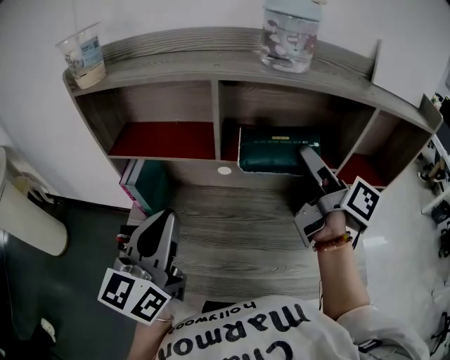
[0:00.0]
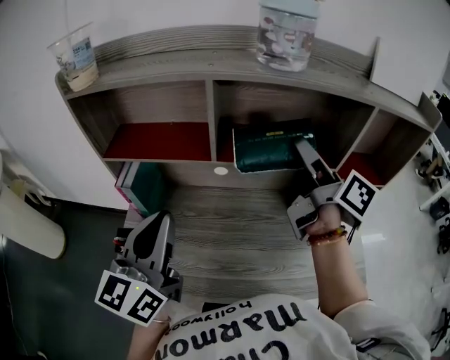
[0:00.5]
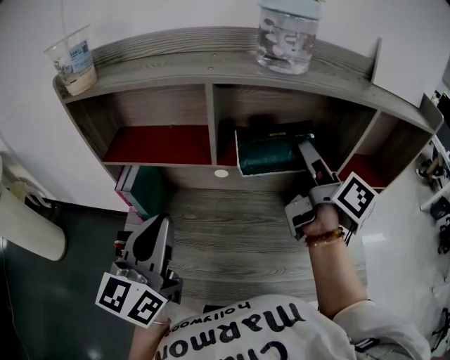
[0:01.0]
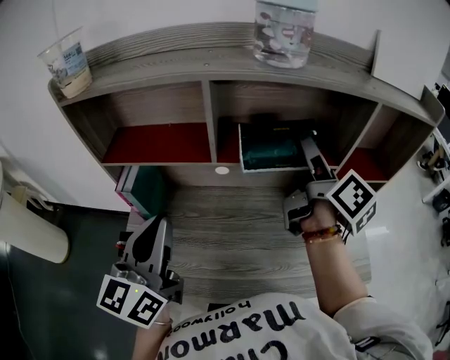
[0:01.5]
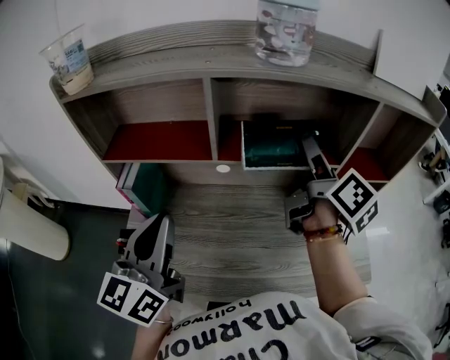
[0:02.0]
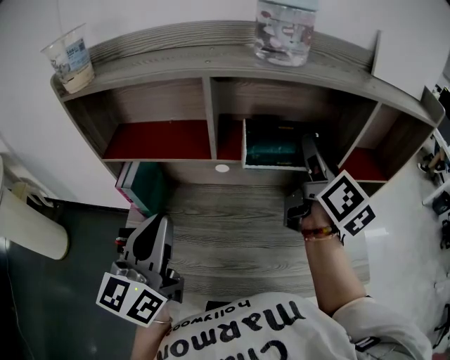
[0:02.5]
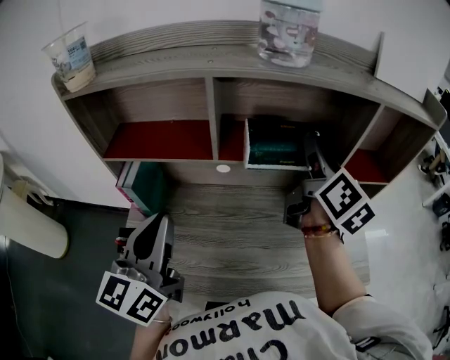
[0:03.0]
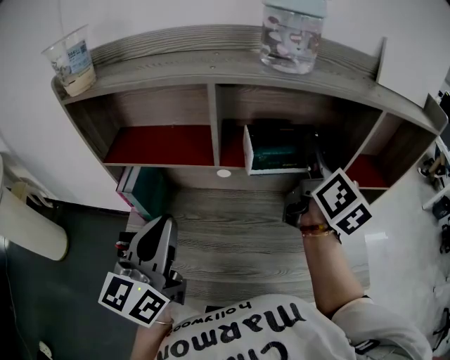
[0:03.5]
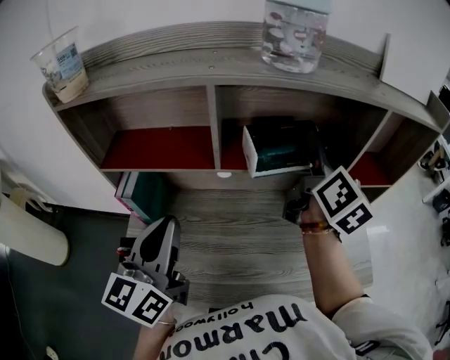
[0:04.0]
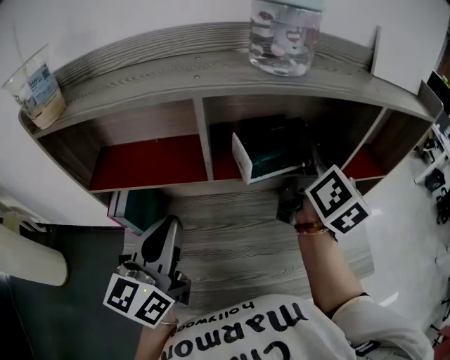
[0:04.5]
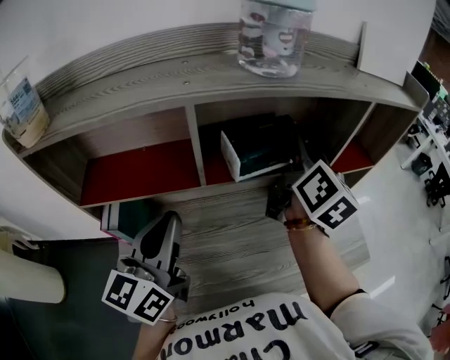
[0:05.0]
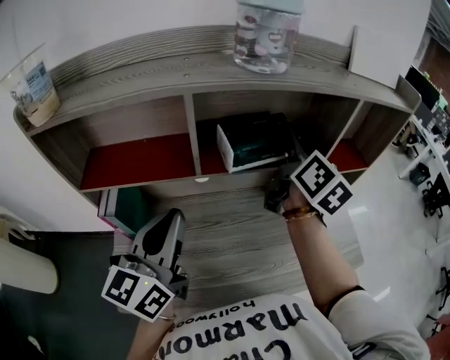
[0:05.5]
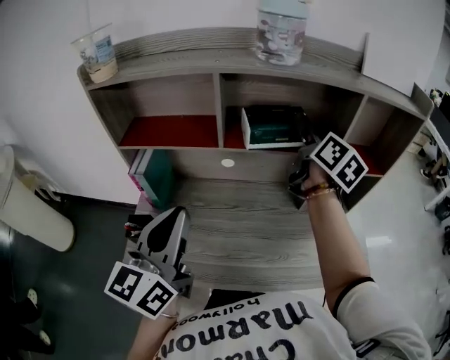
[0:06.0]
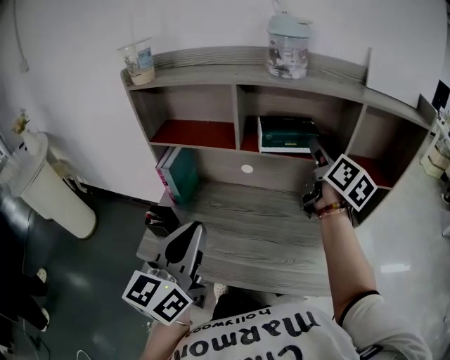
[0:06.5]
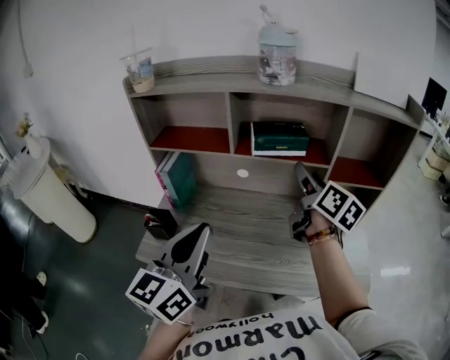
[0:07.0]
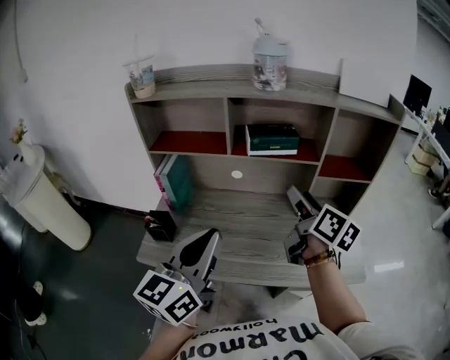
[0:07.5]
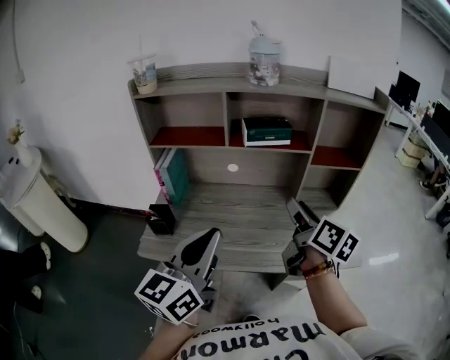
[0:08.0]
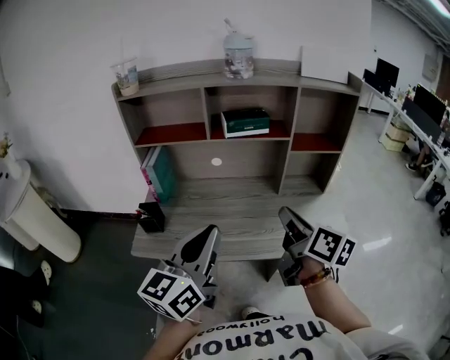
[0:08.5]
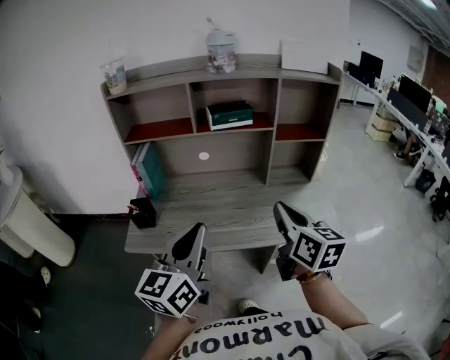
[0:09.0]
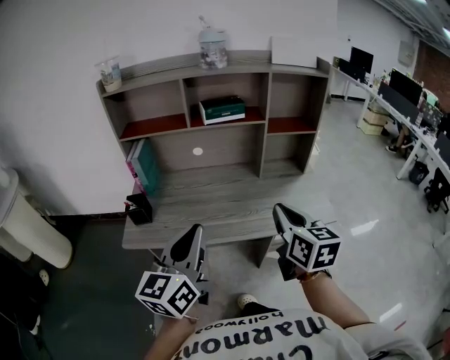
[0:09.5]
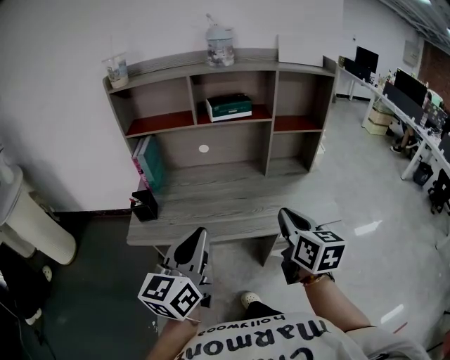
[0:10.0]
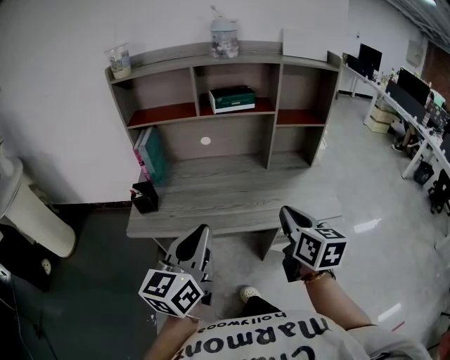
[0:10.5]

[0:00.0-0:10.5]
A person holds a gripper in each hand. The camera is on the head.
0:00.0 to 0:02.0: The right gripper changes its angle by approximately 30 degrees.
0:02.0 to 0:04.0: The right gripper changes its angle by some 20 degrees.
0:04.0 to 0:06.5: The left gripper goes some 15 cm backward and to the right.
0:06.5 to 0:08.5: The right gripper is displaced backward by some 30 cm, and closes its fingers. Meanwhile the left gripper heads backward and to the right, covering some 15 cm.
0:08.5 to 0:10.5: The grippers both shift backward and downward by roughly 10 cm. The right gripper swivels some 30 degrees.

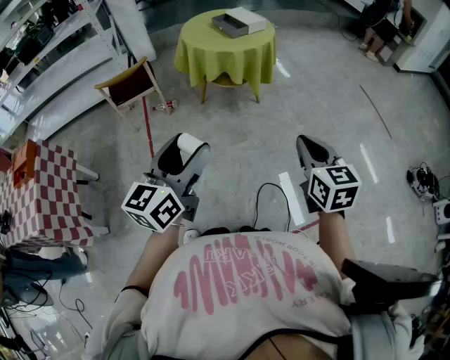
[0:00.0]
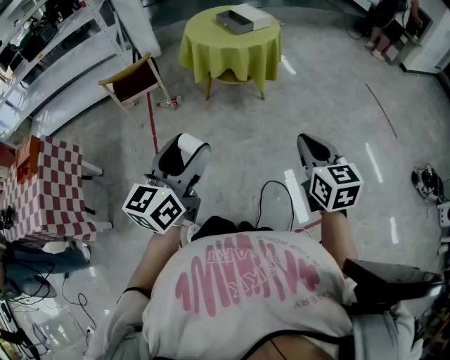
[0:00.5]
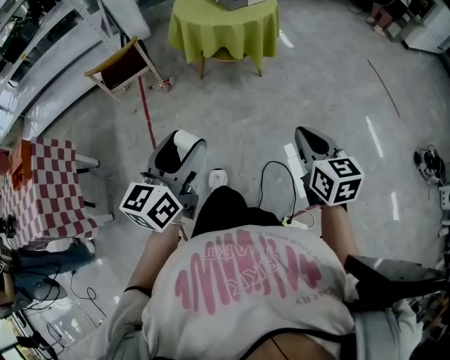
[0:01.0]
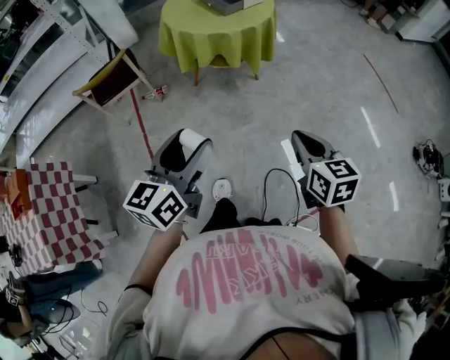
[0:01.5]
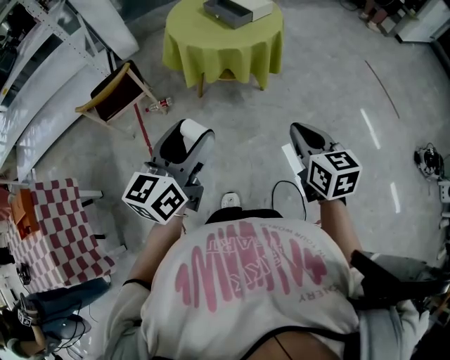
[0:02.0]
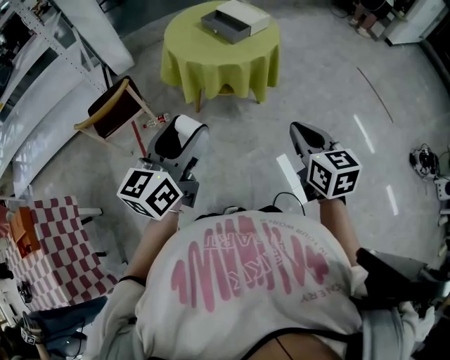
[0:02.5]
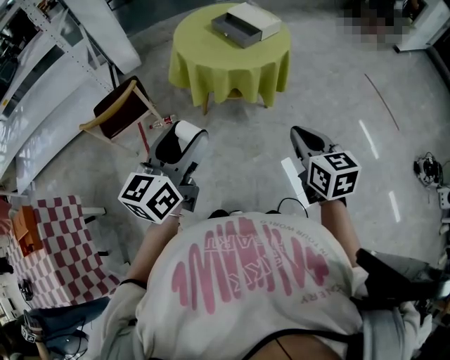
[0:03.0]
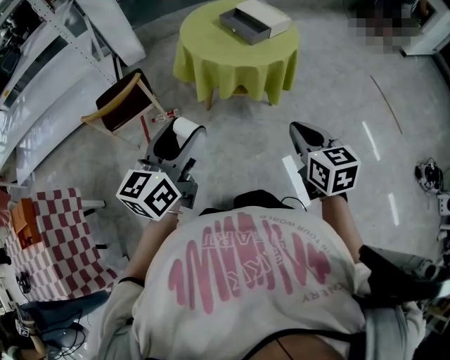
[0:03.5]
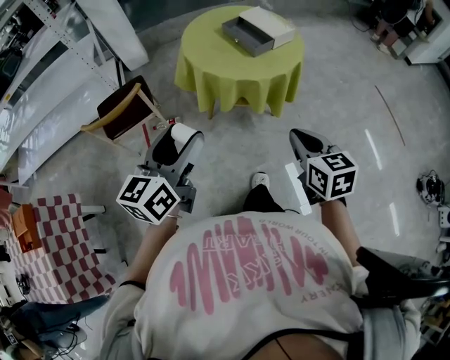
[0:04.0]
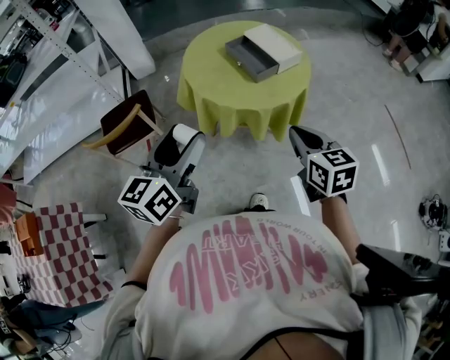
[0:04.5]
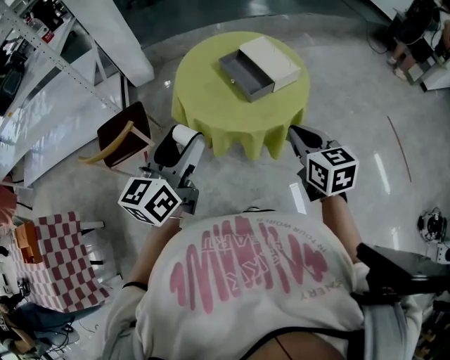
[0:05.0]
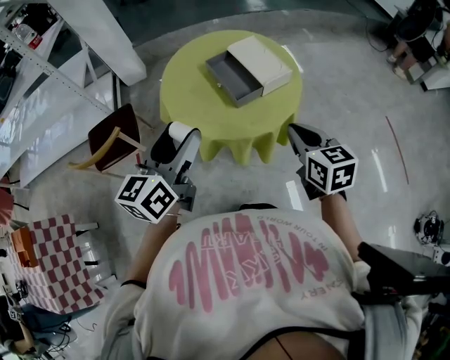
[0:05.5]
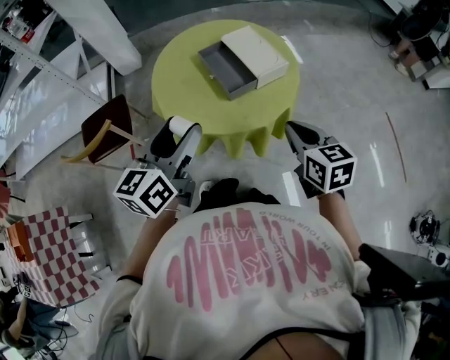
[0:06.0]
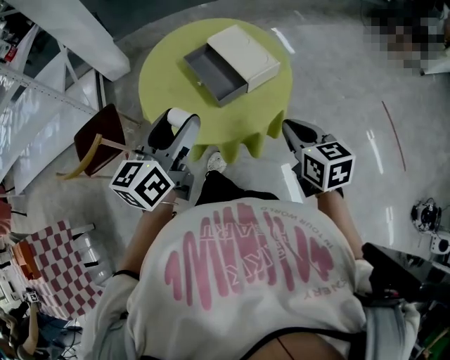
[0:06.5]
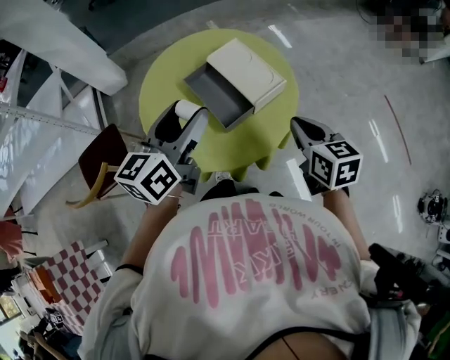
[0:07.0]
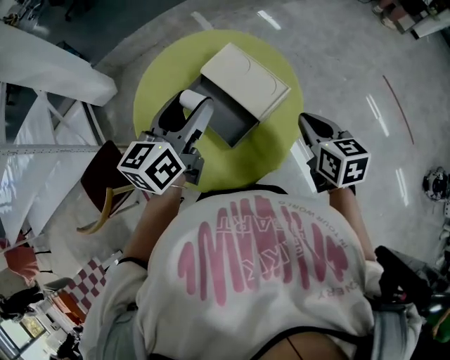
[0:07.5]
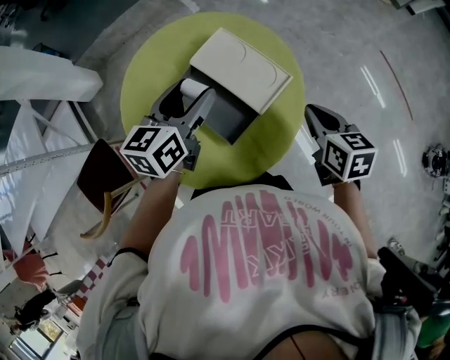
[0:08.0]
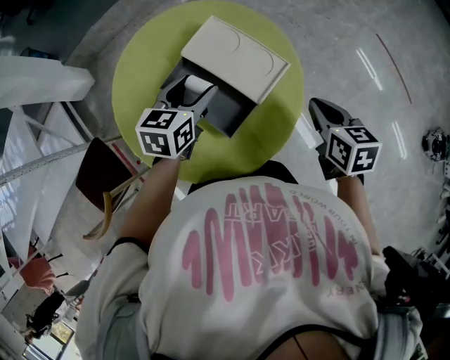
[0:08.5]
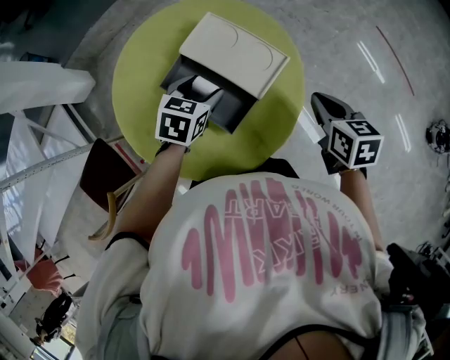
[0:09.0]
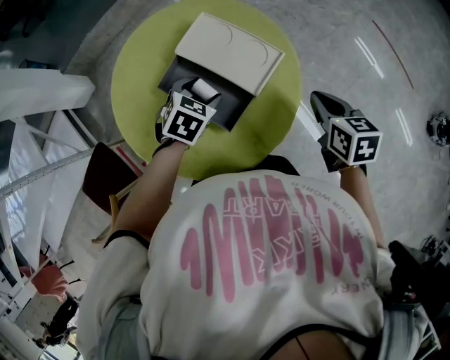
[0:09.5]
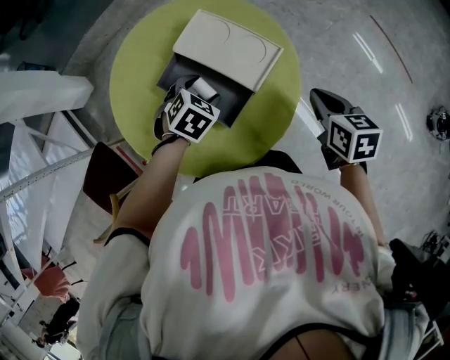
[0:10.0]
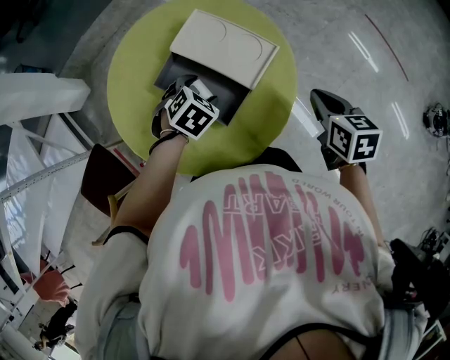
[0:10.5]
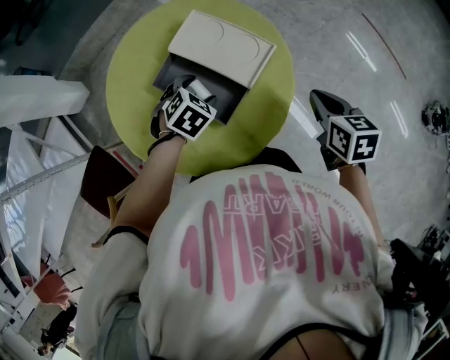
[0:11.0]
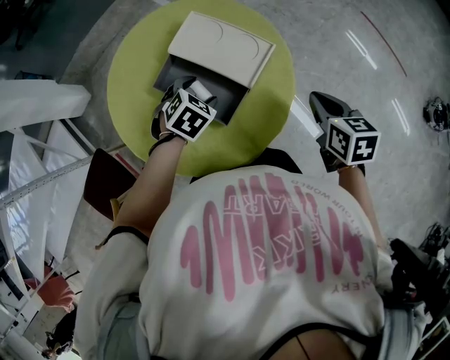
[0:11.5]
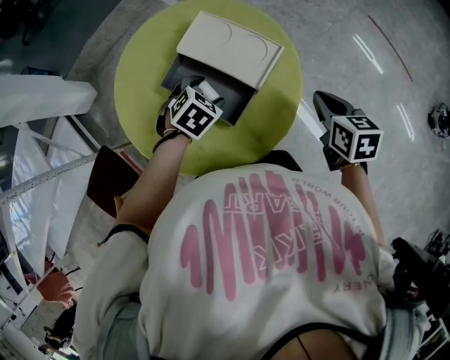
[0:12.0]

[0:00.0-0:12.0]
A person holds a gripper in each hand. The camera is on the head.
0:00.0 to 0:02.0: The right gripper heads forward and to the left, covering some 25 cm. The left gripper goes about 25 cm forward.
0:02.0 to 0:04.0: The left gripper travels forward and to the left by roughly 15 cm. The right gripper shifts roughly 15 cm forward.
0:04.0 to 0:06.0: Both grippers travel together forward and to the right, roughly 30 cm.
0:06.0 to 0:08.0: The right gripper heads forward, covering roughly 20 cm, and swivels roughly 30 degrees. The left gripper goes about 35 cm forward, and changes its angle by roughly 30 degrees.
0:08.0 to 0:10.0: The left gripper travels downward by about 15 cm, and tips its fingers downward by about 40 degrees. Meanwhile the right gripper moves approximately 5 cm.
0:10.0 to 0:12.0: The grippers move only a little.

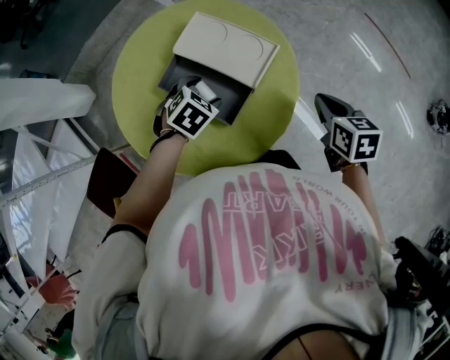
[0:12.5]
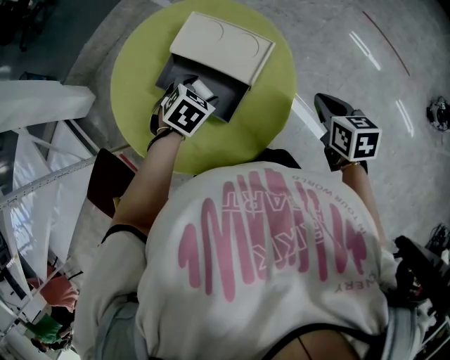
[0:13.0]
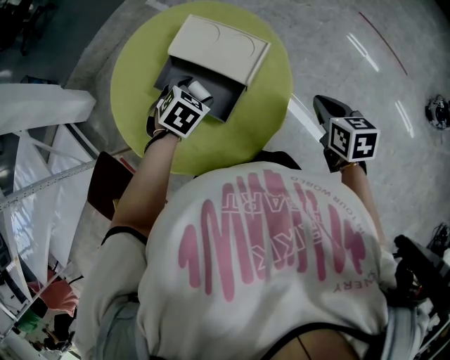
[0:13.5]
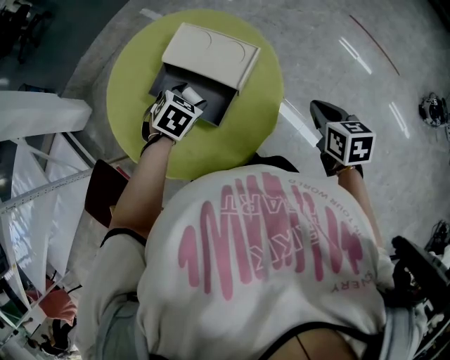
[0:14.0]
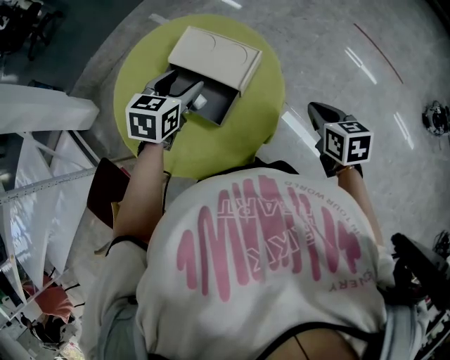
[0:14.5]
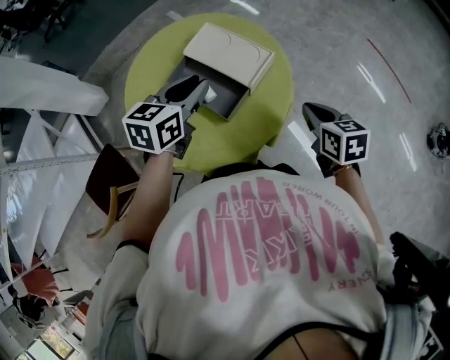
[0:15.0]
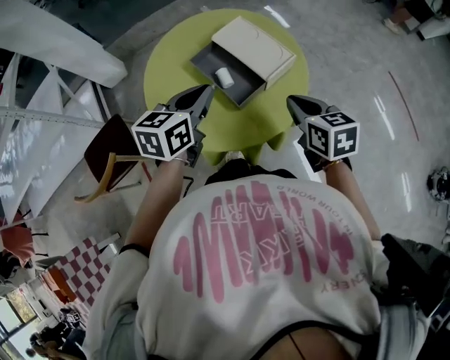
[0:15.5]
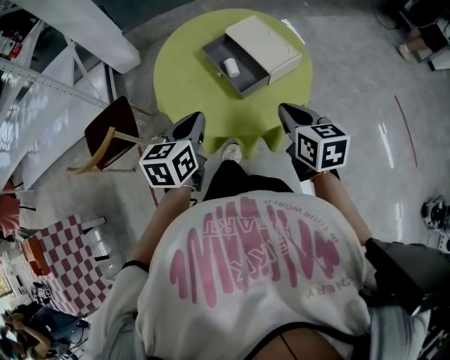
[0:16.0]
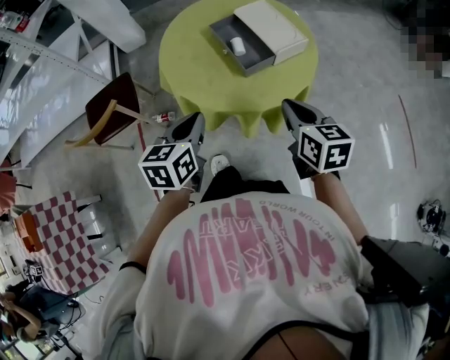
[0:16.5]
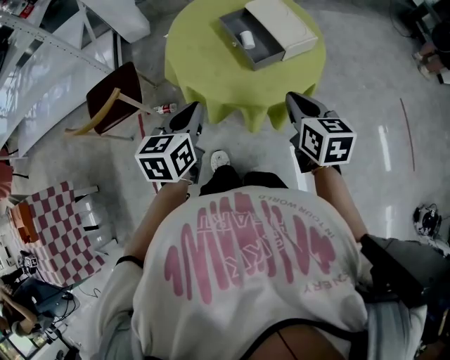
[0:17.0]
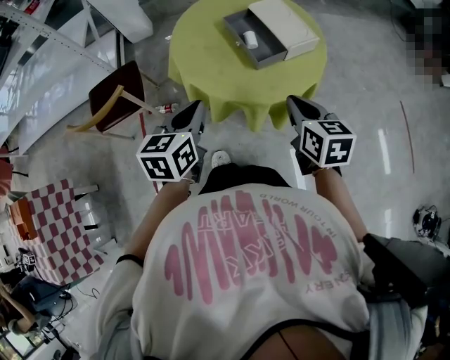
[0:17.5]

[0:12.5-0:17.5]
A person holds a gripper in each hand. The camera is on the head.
0:12.5 to 0:15.0: The right gripper moves approximately 5 cm. The left gripper shifts about 20 cm upward, tilts its fingers about 40 degrees upward, and closes.
0:15.0 to 0:17.5: The left gripper shifts by some 30 cm, and changes its angle by about 40 degrees. The right gripper shifts by roughly 20 cm, and rotates some 20 degrees.
